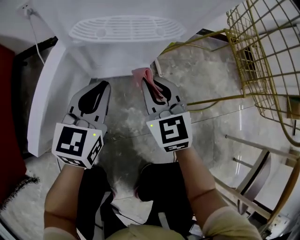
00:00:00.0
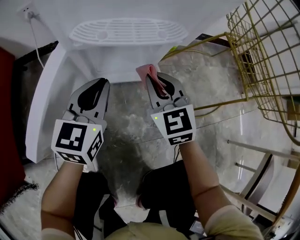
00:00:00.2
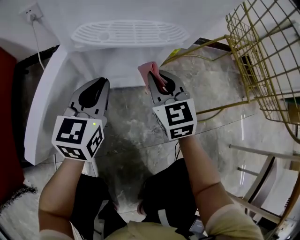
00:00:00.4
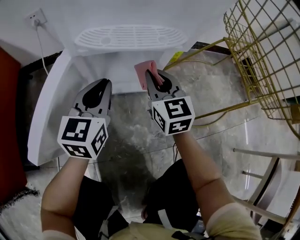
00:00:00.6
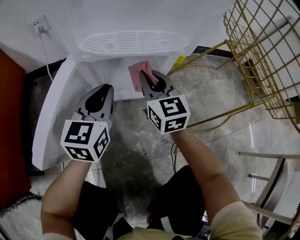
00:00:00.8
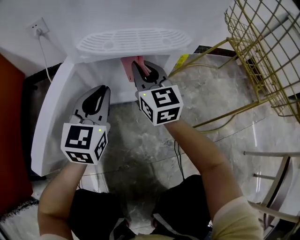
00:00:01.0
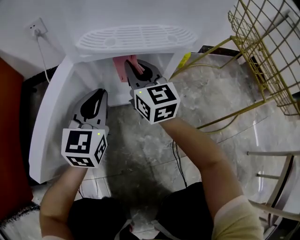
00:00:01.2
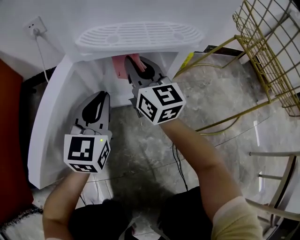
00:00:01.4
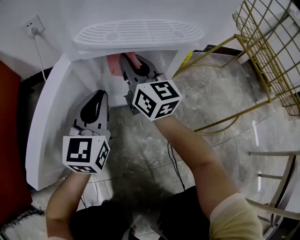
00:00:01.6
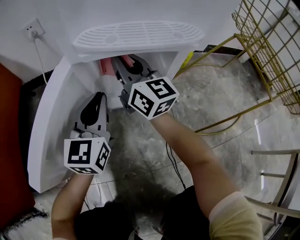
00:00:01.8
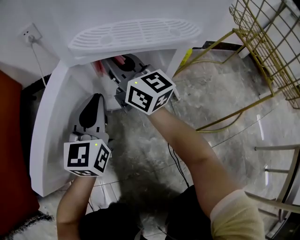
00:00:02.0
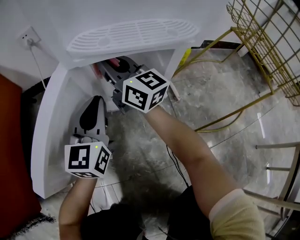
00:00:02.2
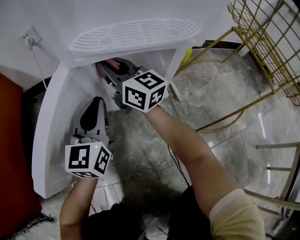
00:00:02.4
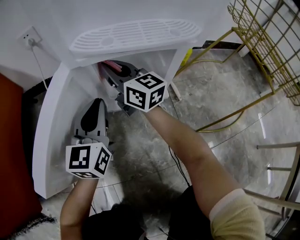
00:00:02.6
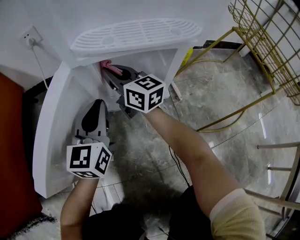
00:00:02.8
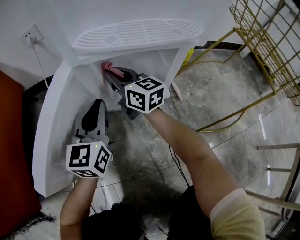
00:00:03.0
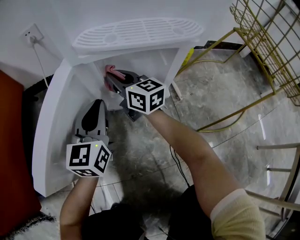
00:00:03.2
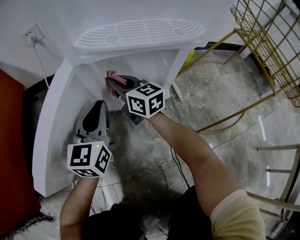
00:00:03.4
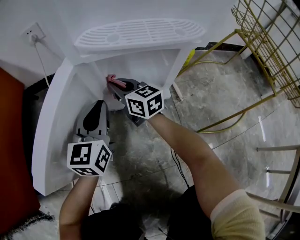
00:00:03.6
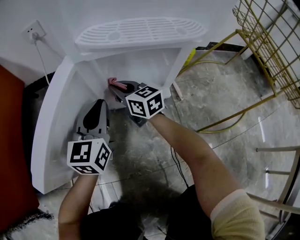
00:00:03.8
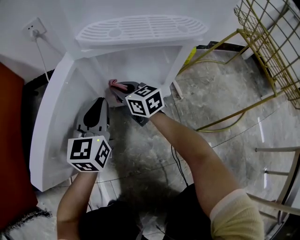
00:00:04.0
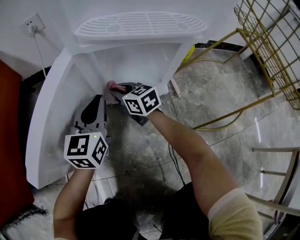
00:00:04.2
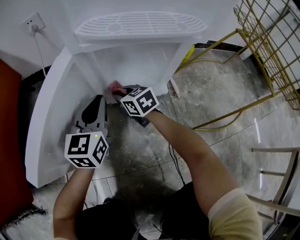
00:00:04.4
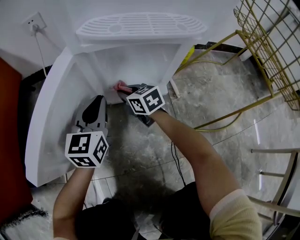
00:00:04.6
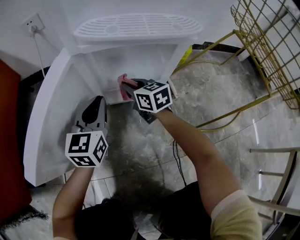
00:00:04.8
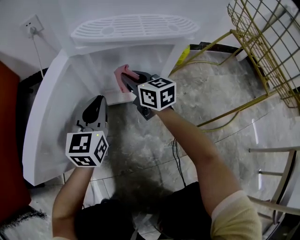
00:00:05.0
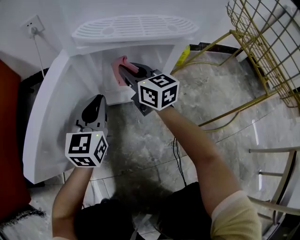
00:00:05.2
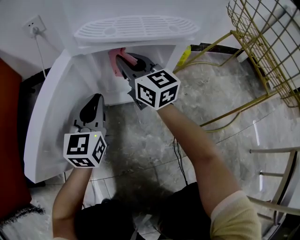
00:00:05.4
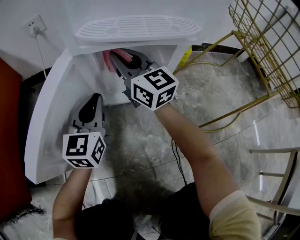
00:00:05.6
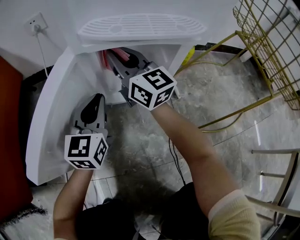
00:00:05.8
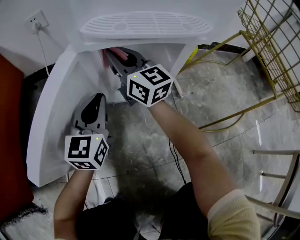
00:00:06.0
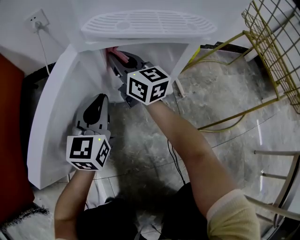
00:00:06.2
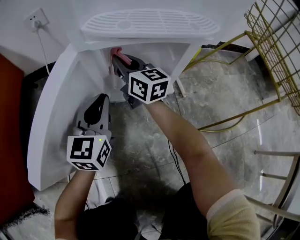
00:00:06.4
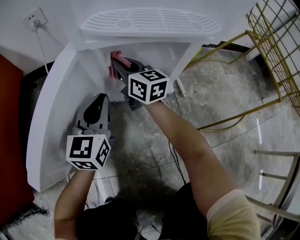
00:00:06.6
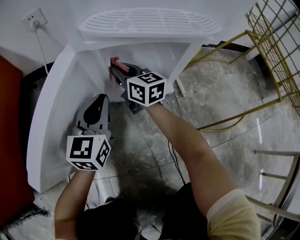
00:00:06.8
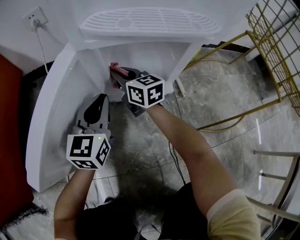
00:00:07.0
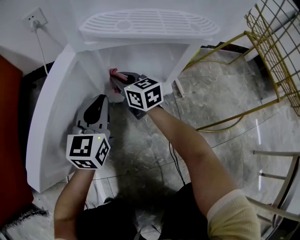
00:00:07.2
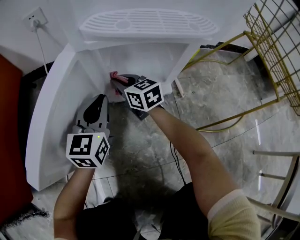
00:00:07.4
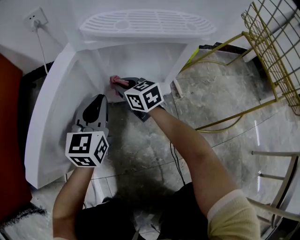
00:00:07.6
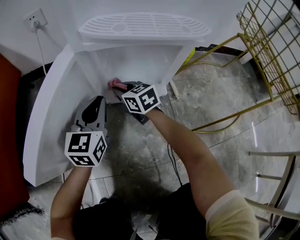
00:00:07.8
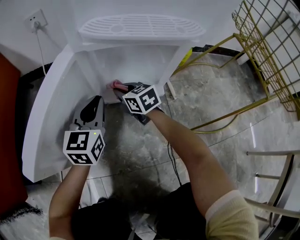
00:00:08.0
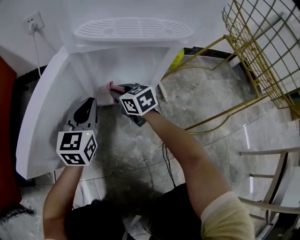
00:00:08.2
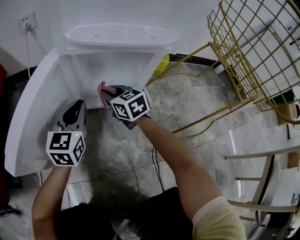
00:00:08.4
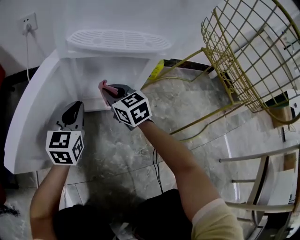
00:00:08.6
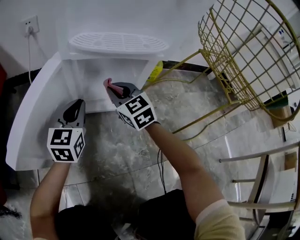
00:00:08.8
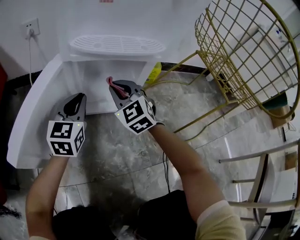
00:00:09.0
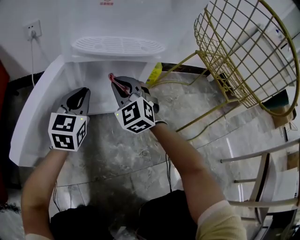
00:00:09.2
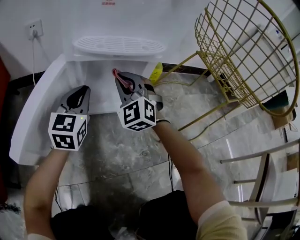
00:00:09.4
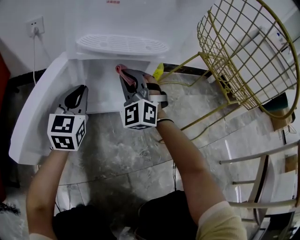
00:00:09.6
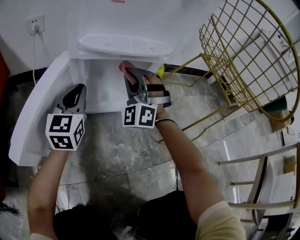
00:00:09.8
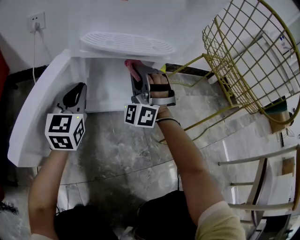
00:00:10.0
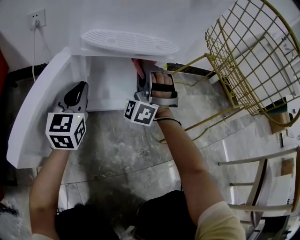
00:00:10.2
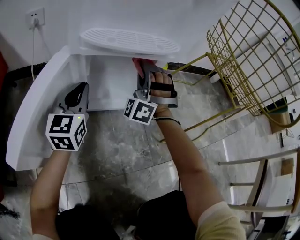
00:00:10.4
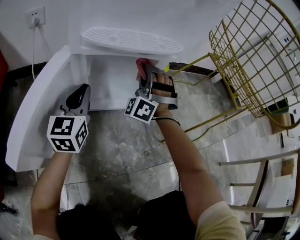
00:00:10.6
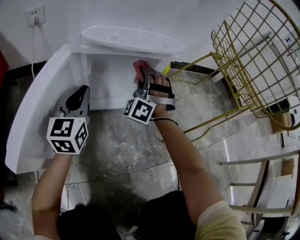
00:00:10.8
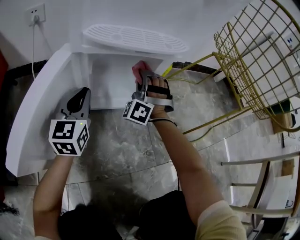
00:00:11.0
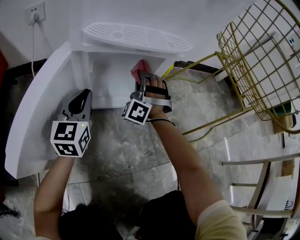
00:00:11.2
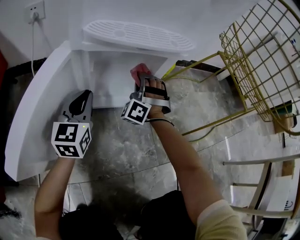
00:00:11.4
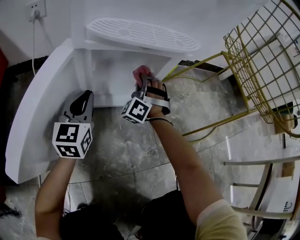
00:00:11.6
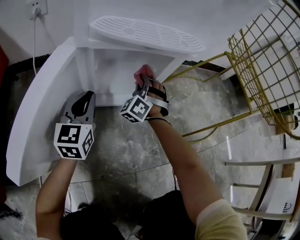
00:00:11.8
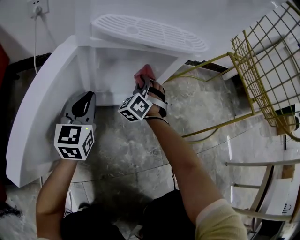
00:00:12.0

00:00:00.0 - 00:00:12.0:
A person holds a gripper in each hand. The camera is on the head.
00:00:00.0 - 00:00:01.6: The right gripper goes about 15 cm forward and to the left, and angles its fingers upward, by roughly 30 degrees. Meanwhile the left gripper is displaced downward and forward by some 10 cm.
00:00:01.6 - 00:00:03.0: The right gripper goes about 10 cm downward and to the left.
00:00:03.0 - 00:00:04.4: The right gripper shifts roughly 15 cm downward, and points its fingers roughly 30 degrees further downward.
00:00:04.4 - 00:00:06.0: The right gripper travels upward by approximately 20 cm, and points its fingers roughly 40 degrees further upward.
00:00:06.0 - 00:00:07.6: The right gripper goes some 20 cm downward, and points its fingers approximately 30 degrees further downward.
00:00:07.6 - 00:00:09.0: The right gripper shifts about 15 cm upward, to the right and backward, and rotates around the line of its fingers by roughly 40 degrees, counterclockwise from behind. The left gripper moves roughly 5 cm.
00:00:09.0 - 00:00:10.4: The right gripper moves to the right and forward, roughly 10 cm, and turns by some 60 degrees.
00:00:10.4 - 00:00:12.0: The right gripper is displaced downward by some 15 cm, and rotates about 30 degrees. Meanwhile the left gripper shifts roughly 5 cm downward.

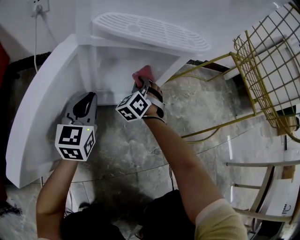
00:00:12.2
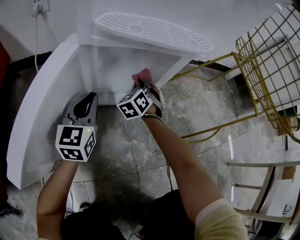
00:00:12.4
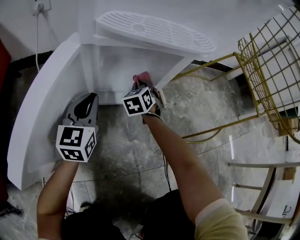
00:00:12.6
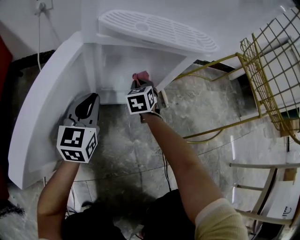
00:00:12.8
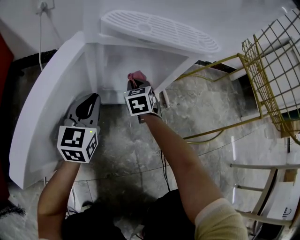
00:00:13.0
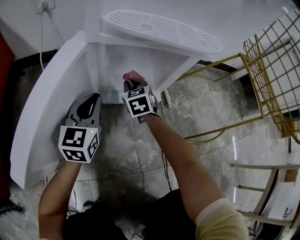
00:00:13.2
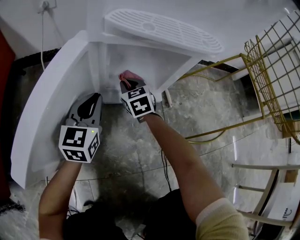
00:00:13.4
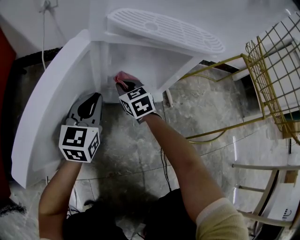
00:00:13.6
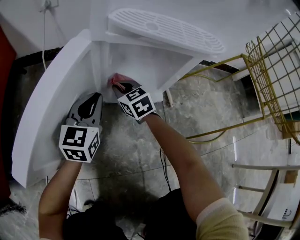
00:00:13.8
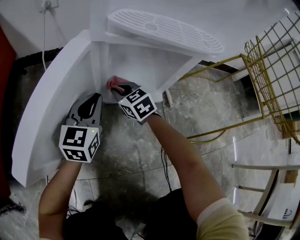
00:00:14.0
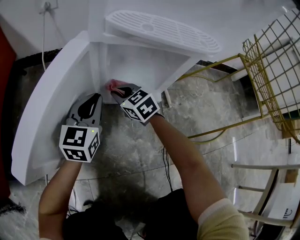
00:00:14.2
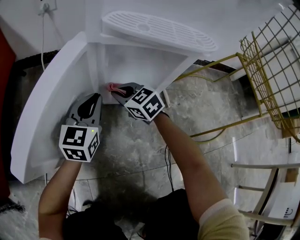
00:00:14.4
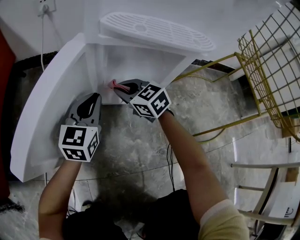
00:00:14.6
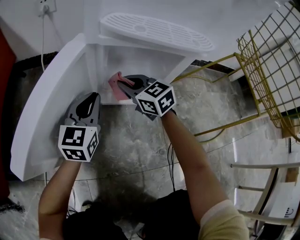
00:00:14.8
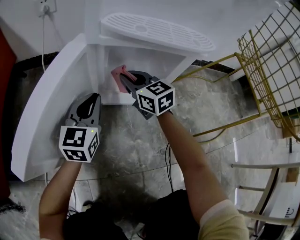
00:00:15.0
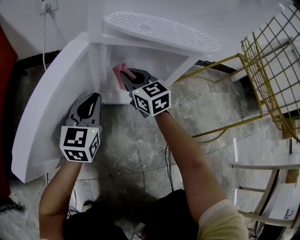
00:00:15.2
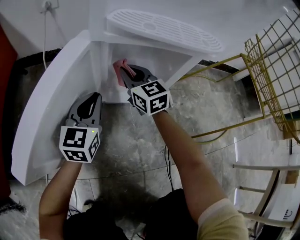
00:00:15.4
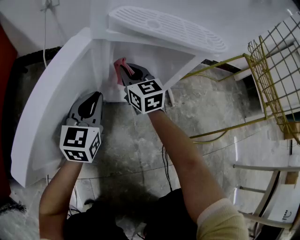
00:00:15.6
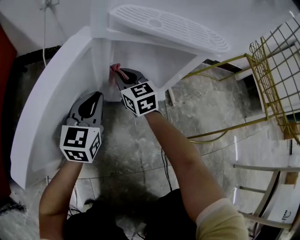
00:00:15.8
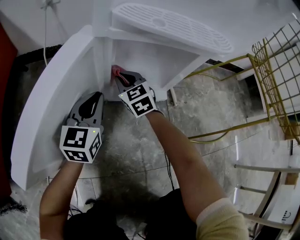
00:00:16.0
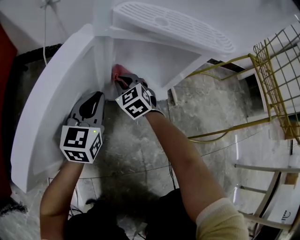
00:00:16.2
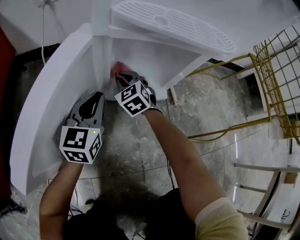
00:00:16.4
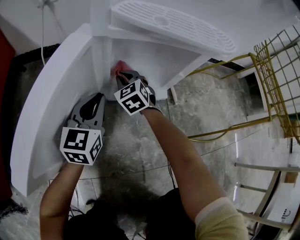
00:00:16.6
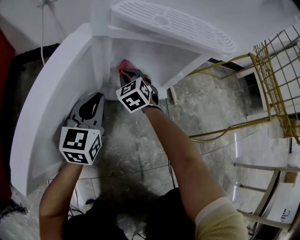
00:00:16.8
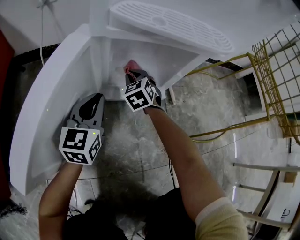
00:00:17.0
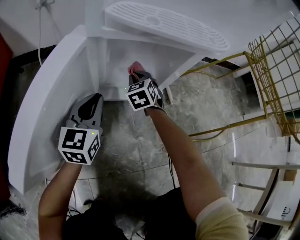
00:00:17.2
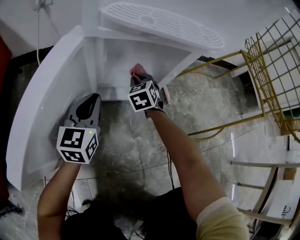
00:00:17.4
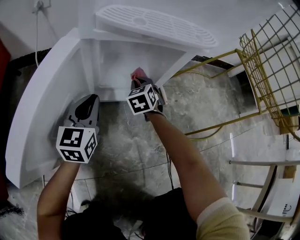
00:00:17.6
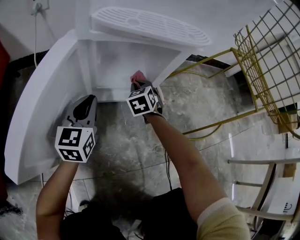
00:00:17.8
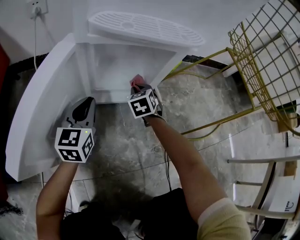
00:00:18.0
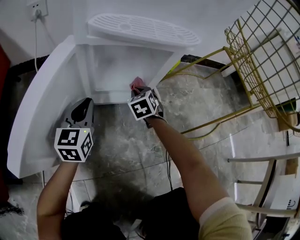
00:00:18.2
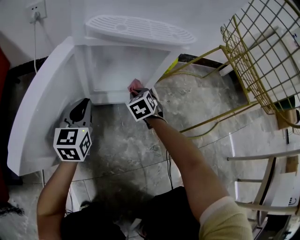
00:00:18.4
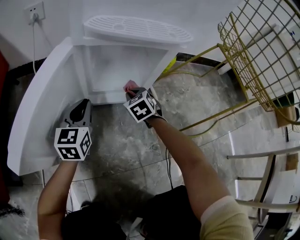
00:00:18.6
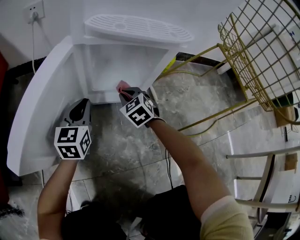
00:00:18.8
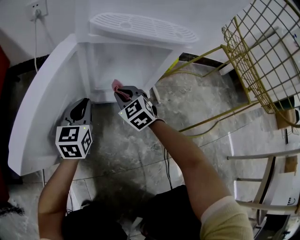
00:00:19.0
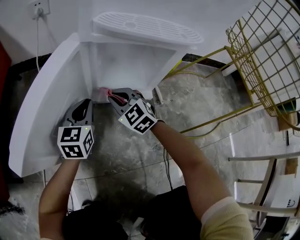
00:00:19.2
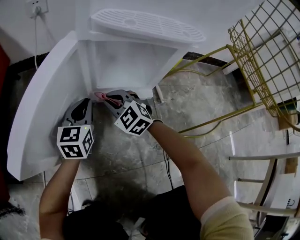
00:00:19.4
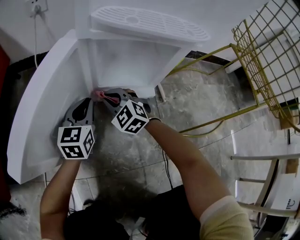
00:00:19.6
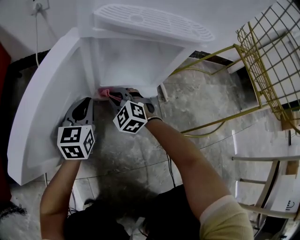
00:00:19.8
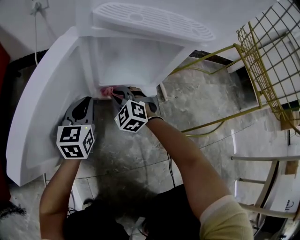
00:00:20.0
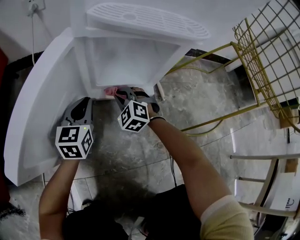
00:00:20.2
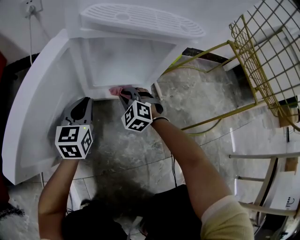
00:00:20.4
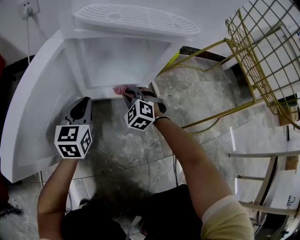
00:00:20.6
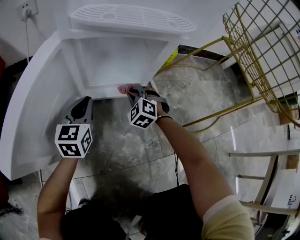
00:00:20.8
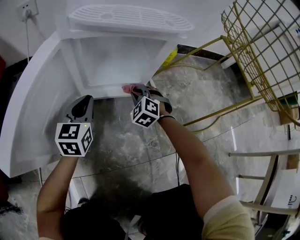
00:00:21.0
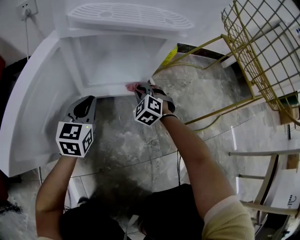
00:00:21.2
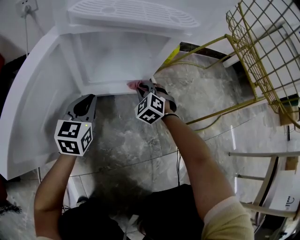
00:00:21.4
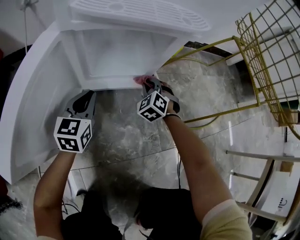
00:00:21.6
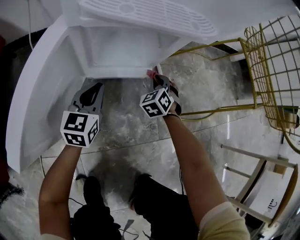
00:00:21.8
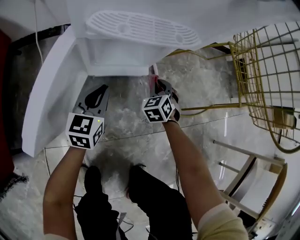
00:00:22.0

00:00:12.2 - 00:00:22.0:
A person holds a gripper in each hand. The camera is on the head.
00:00:12.2 - 00:00:13.6: The right gripper goes some 10 cm to the left, and changes its angle by some 50 degrees.
00:00:13.6 - 00:00:15.0: The right gripper moves upward, about 10 cm.
00:00:15.0 - 00:00:16.4: The right gripper shifts roughly 10 cm downward, and rotates about 30 degrees.
00:00:16.4 - 00:00:17.8: The right gripper goes approximately 15 cm to the right, and turns by some 20 degrees.
00:00:17.8 - 00:00:19.2: The right gripper moves to the left and backward, roughly 15 cm, and changes its angle by about 40 degrees.
00:00:19.2 - 00:00:20.6: The right gripper shifts about 10 cm to the right and downward, and swivels about 30 degrees.
00:00:20.6 - 00:00:22.0: The right gripper is displaced to the right and upward by some 15 cm, and changes its angle by approximately 40 degrees, while the left gripper goes approximately 10 cm upward and to the right.

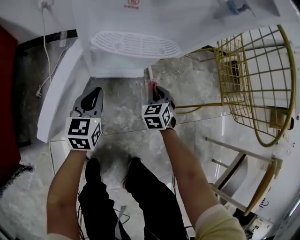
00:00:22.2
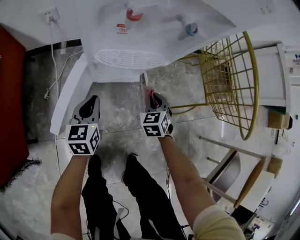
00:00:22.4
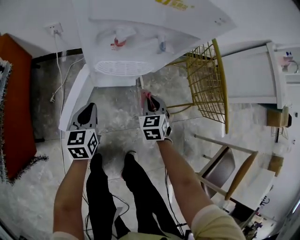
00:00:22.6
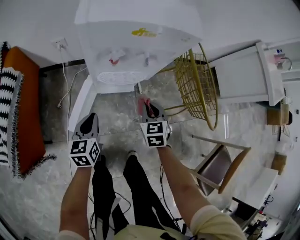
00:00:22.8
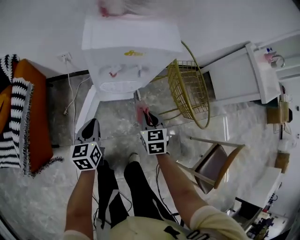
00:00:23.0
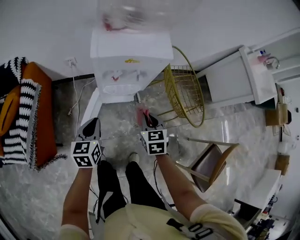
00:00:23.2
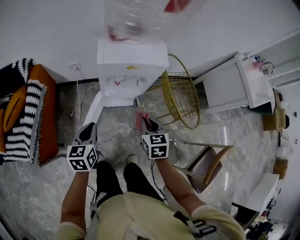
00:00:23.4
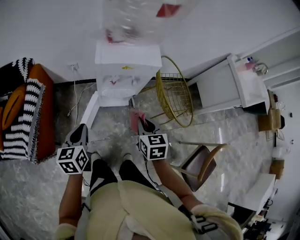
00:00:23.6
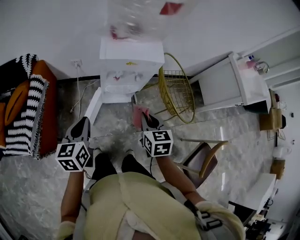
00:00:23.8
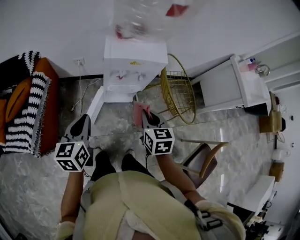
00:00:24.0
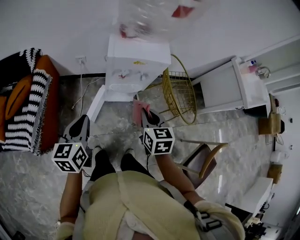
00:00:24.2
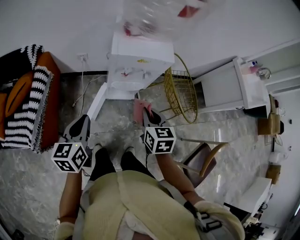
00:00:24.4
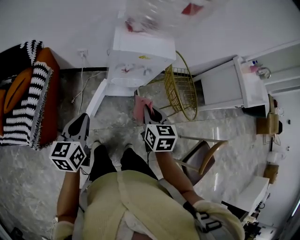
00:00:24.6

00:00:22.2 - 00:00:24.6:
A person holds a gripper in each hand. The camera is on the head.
00:00:22.2 - 00:00:23.4: The two grippers go about 50 cm upward. The right gripper changes its angle by about 30 degrees.
00:00:23.4 - 00:00:24.6: The left gripper is displaced upward, to the left and backward by about 15 cm. Meanwhile the right gripper goes about 10 cm upward.
